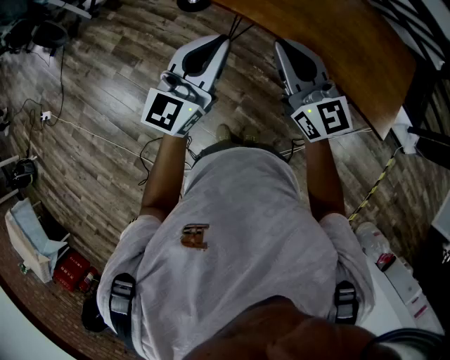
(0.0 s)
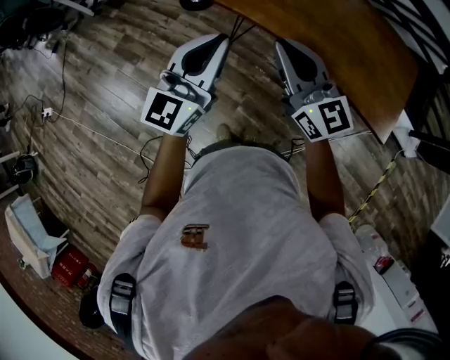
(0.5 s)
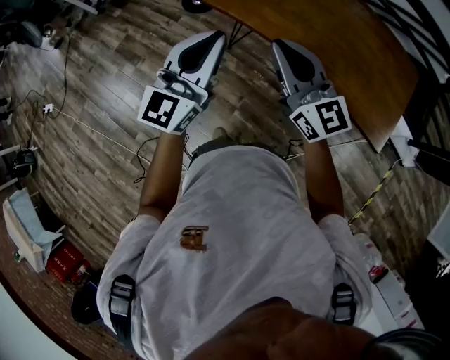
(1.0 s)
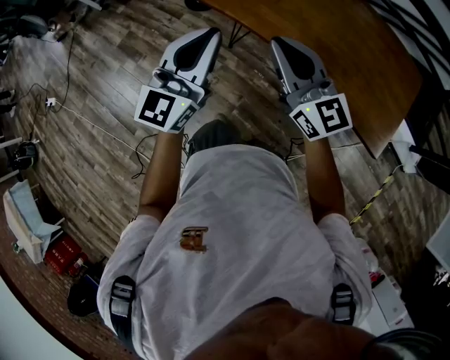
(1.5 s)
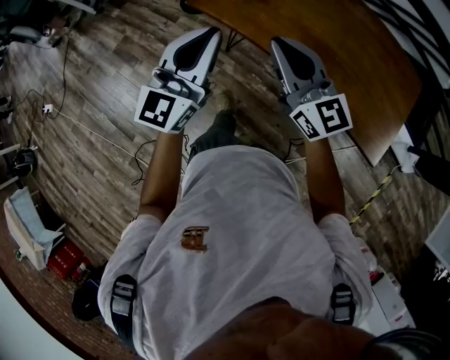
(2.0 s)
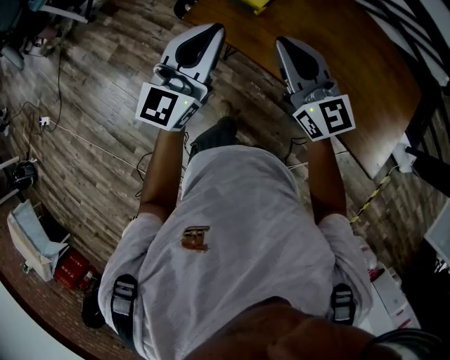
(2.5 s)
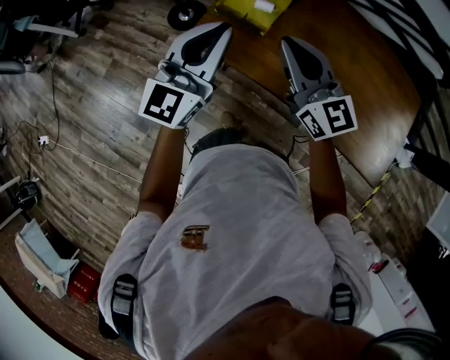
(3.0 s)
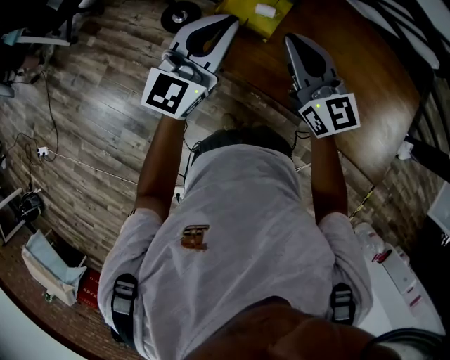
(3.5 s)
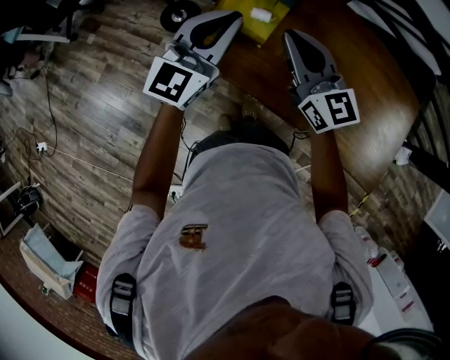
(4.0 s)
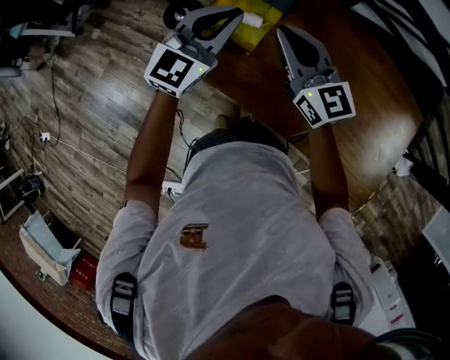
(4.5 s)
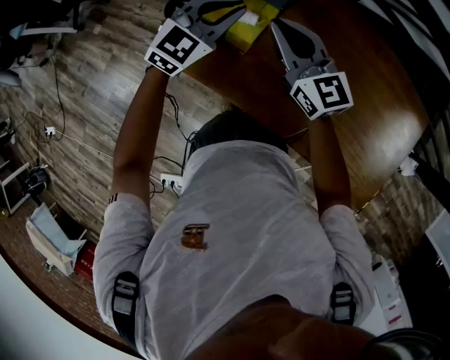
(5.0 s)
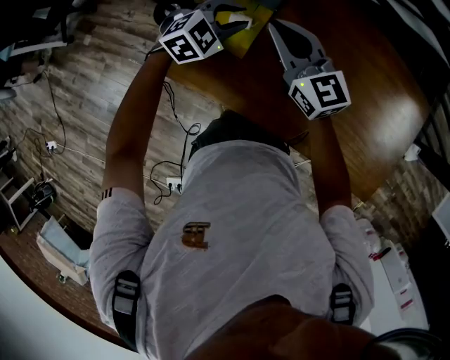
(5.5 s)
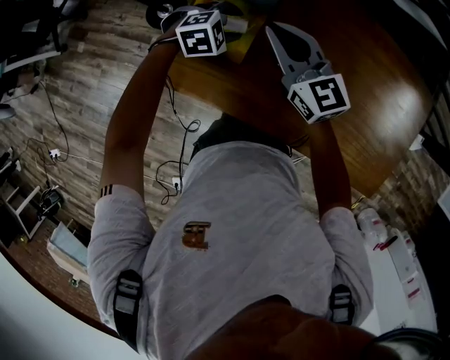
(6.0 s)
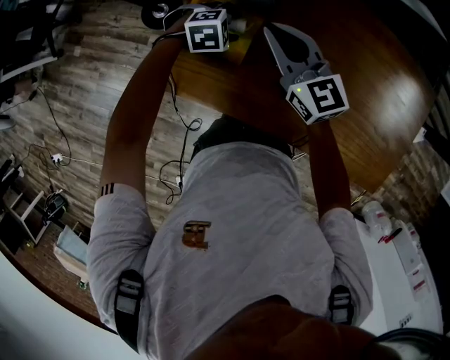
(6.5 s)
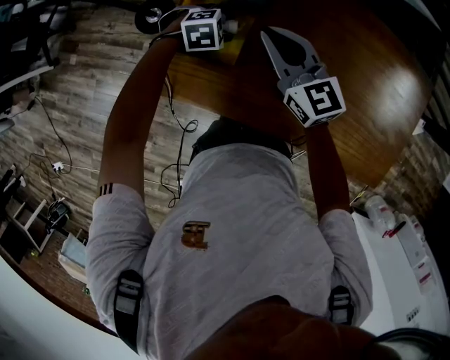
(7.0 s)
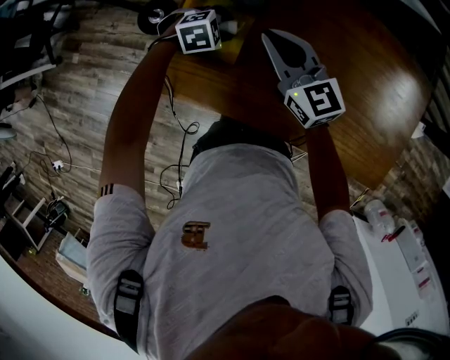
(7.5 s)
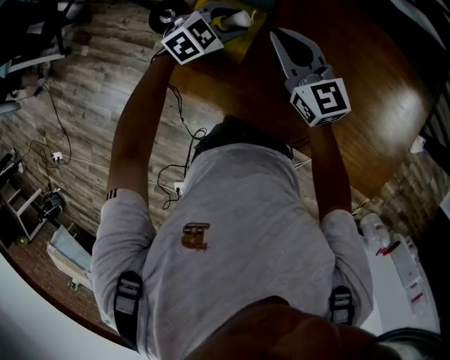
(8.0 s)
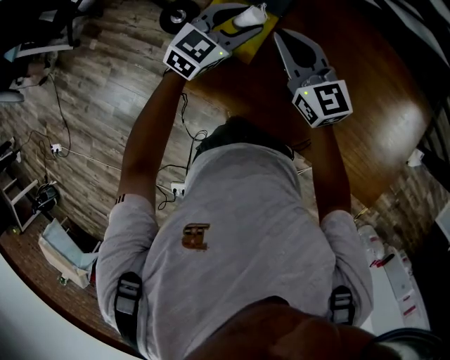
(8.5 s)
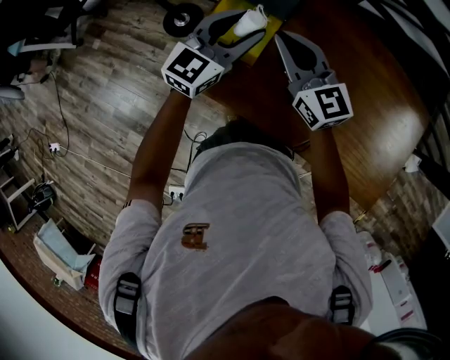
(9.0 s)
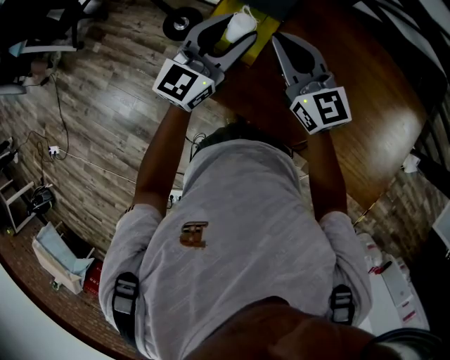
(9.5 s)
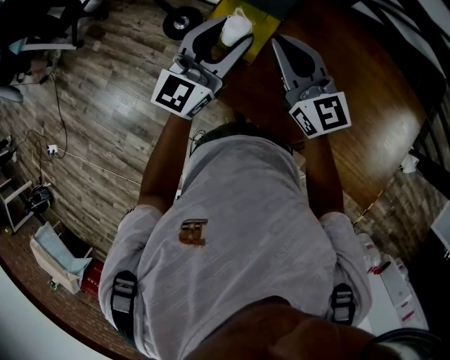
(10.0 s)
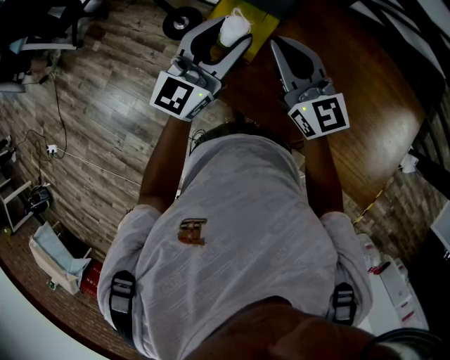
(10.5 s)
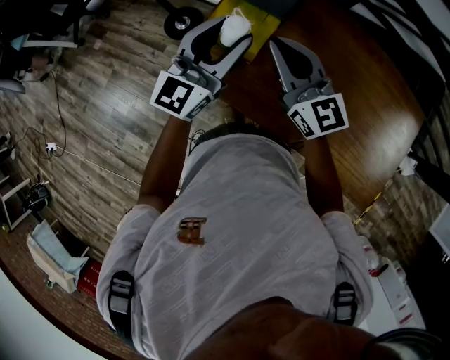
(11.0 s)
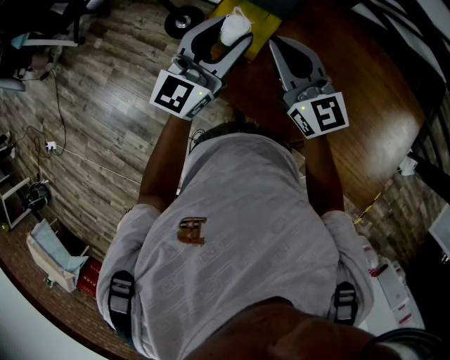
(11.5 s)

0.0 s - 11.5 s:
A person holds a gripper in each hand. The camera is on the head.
0.0 s - 2.0 s: Both grippers travel together forward and to the right, approximately 15 cm.
2.0 s - 4.0 s: Both grippers travel together forward, approximately 35 cm.
4.0 s - 6.0 s: The right gripper moves forward and downward, roughly 20 cm; the left gripper goes about 35 cm downward and forward, angles its fingers downward, by approximately 60 degrees, and opens.
6.0 s - 7.5 s: The grippers stay close to where they were, moving slightly.
7.5 s - 9.5 s: The left gripper goes some 30 cm upward, and points its fingers about 70 degrees further upward, while the right gripper moves upward and backward, roughly 10 cm.
9.5 s - 11.5 s: The left gripper changes place by roughly 5 cm.

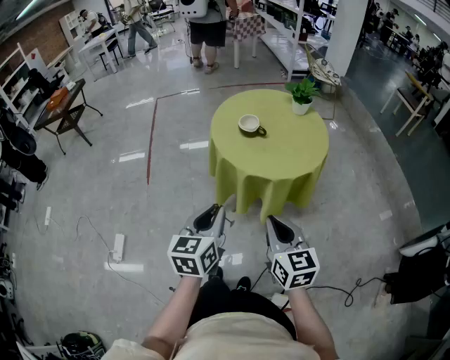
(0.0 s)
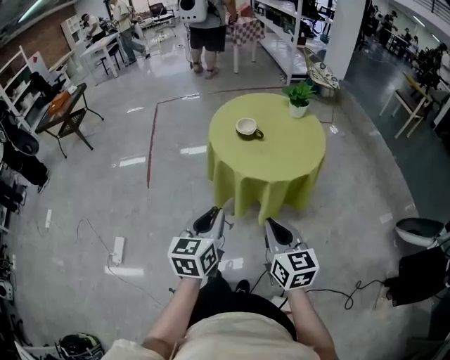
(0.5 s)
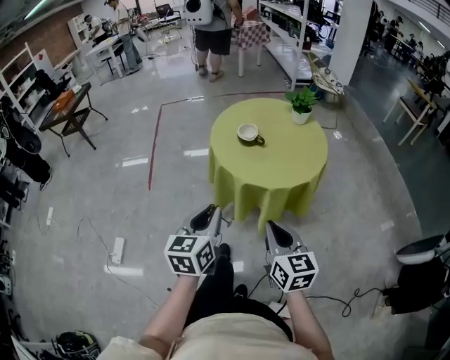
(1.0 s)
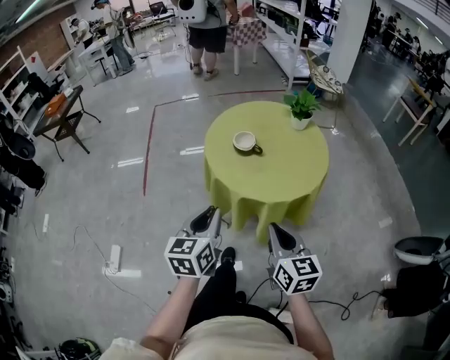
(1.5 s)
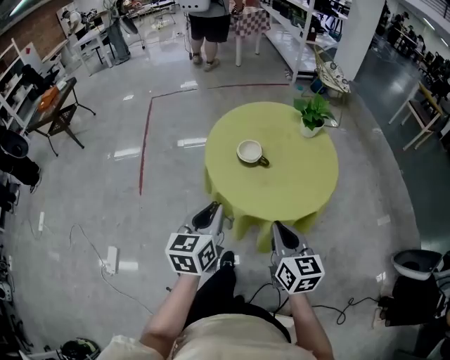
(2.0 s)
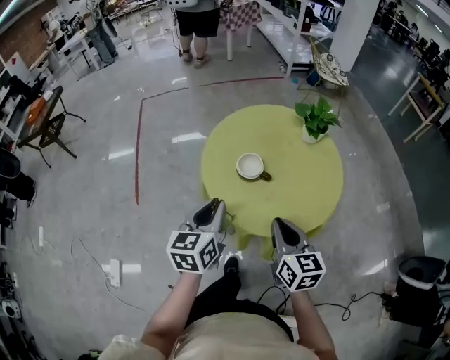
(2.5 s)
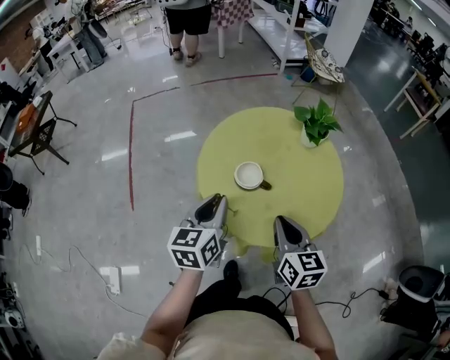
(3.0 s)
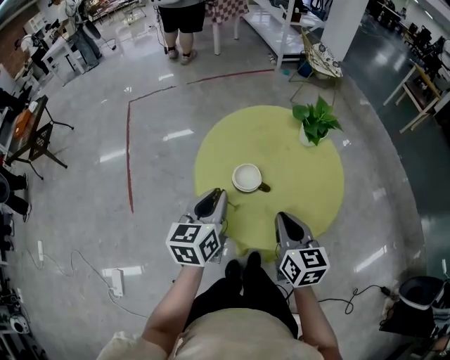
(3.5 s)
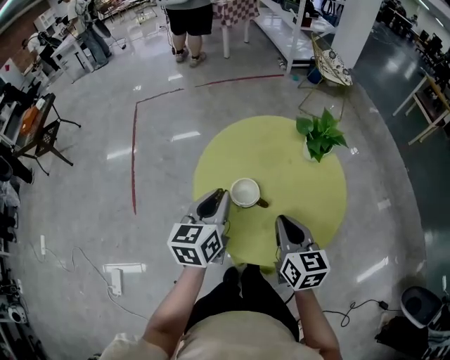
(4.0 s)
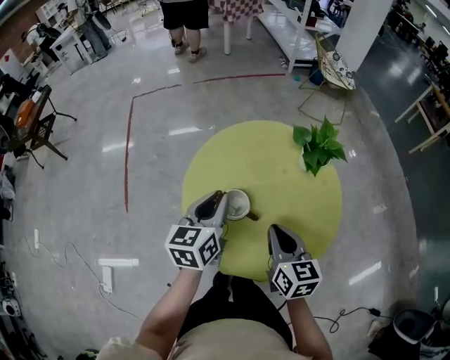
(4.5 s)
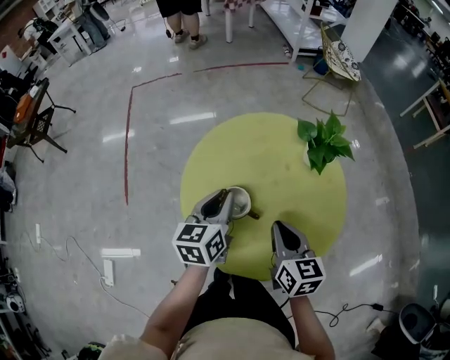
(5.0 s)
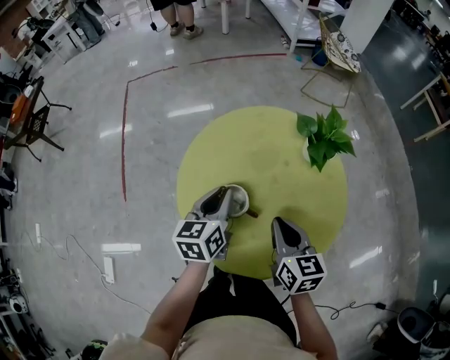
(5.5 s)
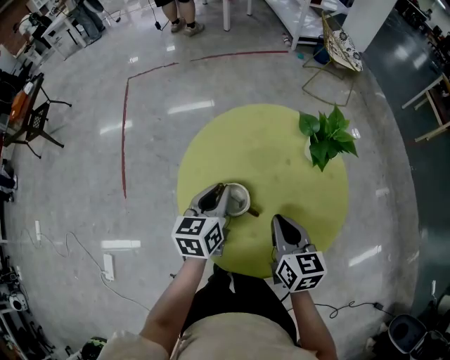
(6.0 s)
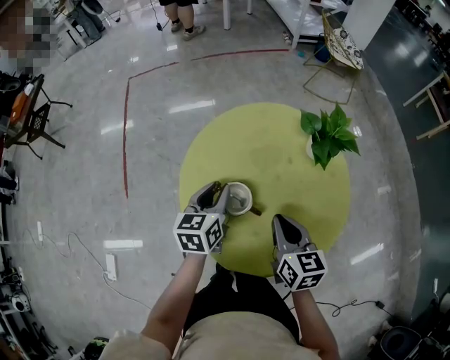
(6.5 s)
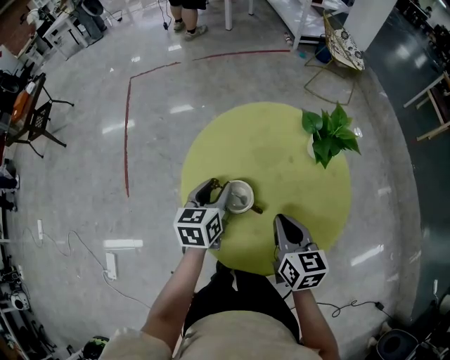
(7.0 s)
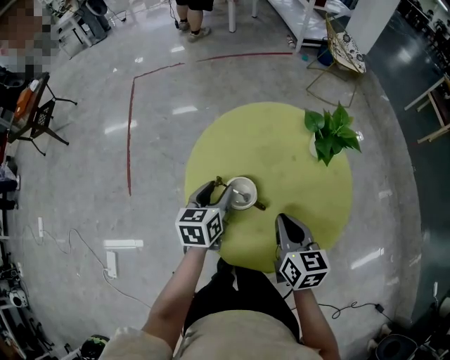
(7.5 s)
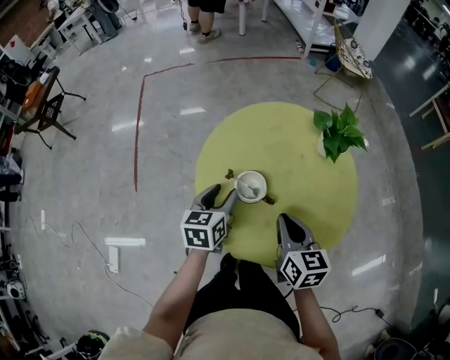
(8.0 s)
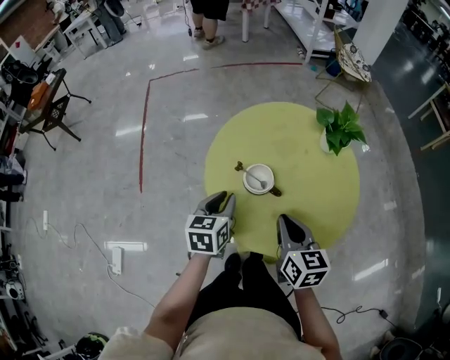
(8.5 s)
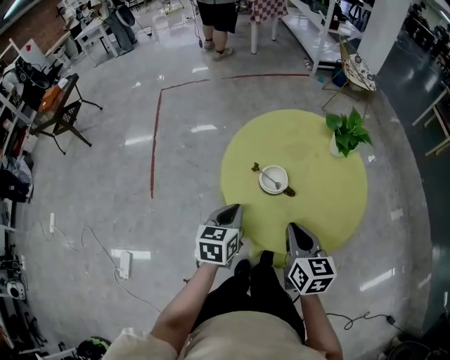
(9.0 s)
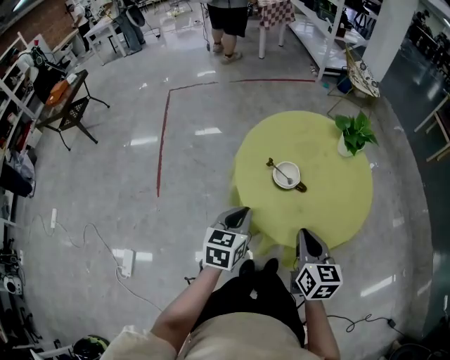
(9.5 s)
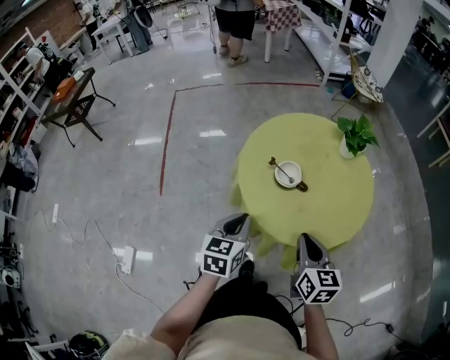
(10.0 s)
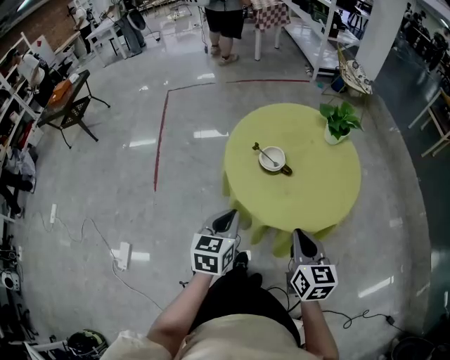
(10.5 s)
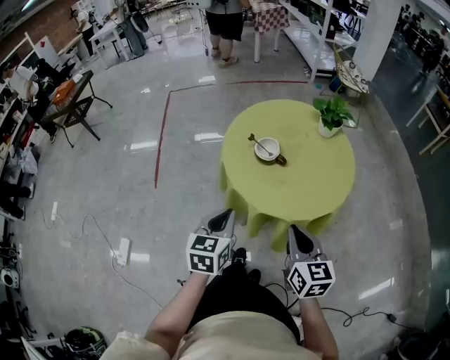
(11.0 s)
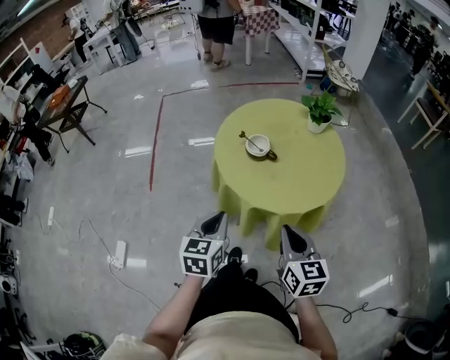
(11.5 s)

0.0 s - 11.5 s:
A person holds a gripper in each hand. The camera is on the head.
0.0 s - 2.0 s: The two grippers go approximately 15 cm forward.
2.0 s - 4.0 s: Both grippers move forward, about 20 cm.
4.0 s - 6.0 s: The right gripper moves forward, approximately 5 cm; the left gripper goes approximately 10 cm downward and forward.
6.0 s - 7.5 s: The left gripper opens up.
7.5 s - 9.5 s: The left gripper heads backward, covering some 15 cm, and closes. The right gripper travels backward and to the left by roughly 15 cm.
9.5 s - 11.5 s: The two grippers go some 15 cm backward.

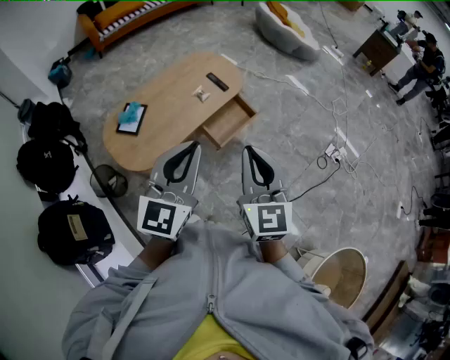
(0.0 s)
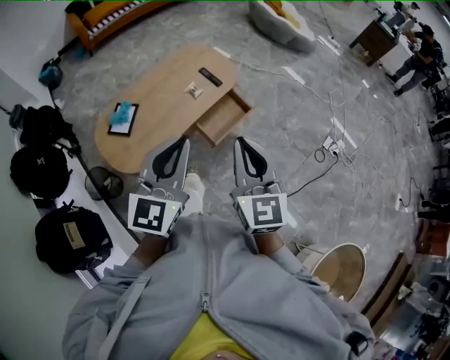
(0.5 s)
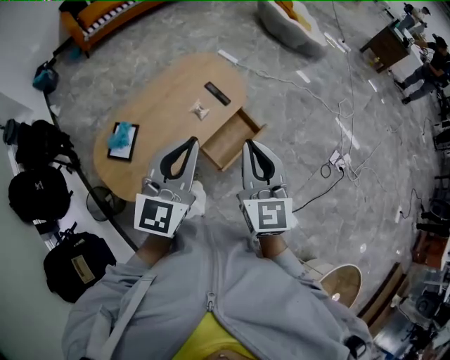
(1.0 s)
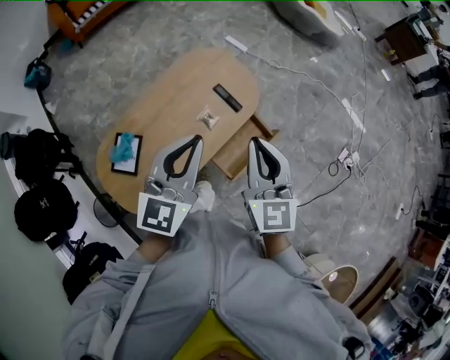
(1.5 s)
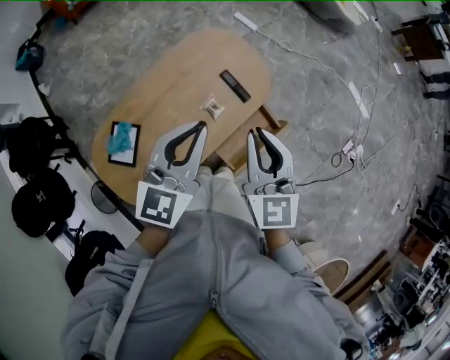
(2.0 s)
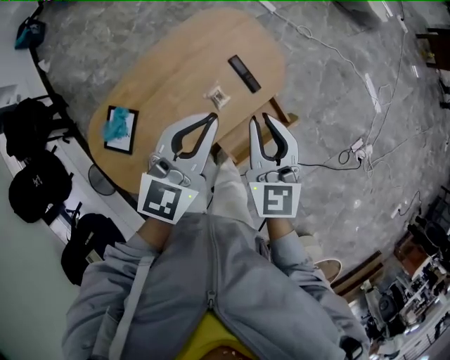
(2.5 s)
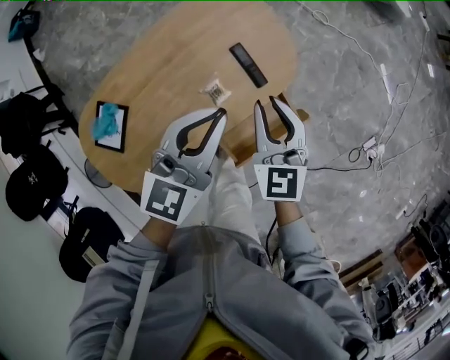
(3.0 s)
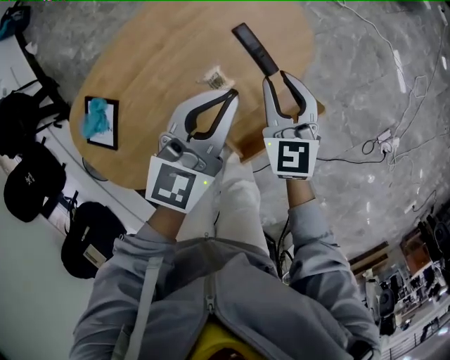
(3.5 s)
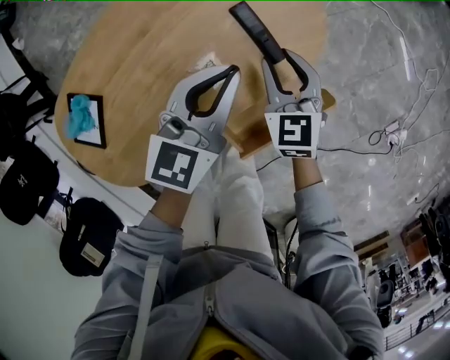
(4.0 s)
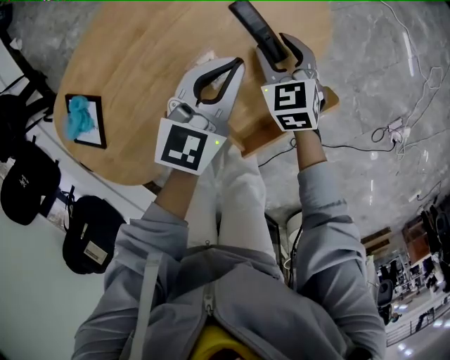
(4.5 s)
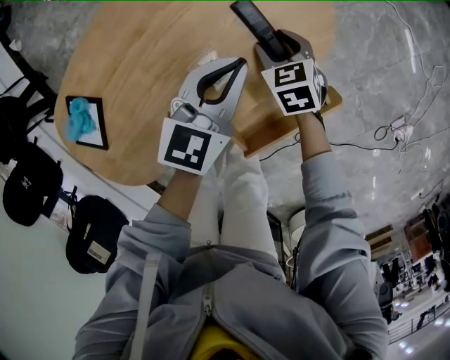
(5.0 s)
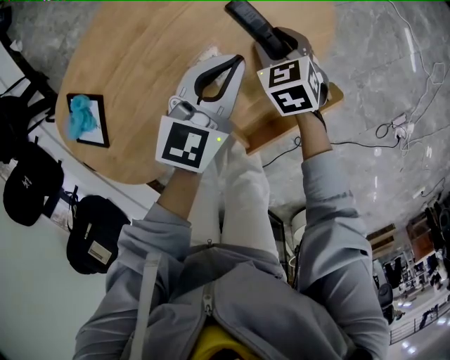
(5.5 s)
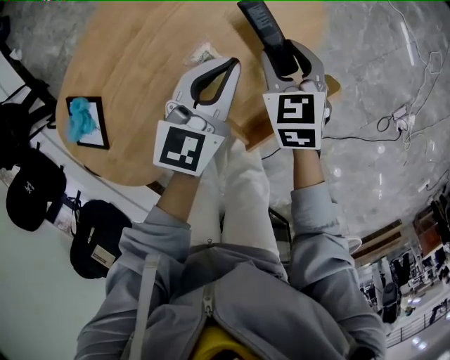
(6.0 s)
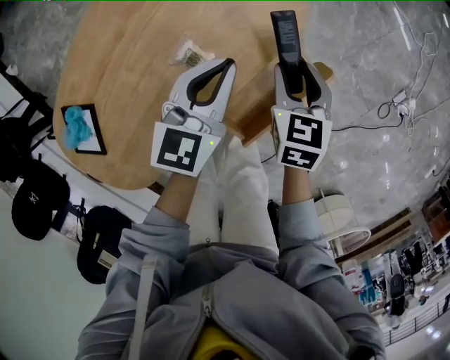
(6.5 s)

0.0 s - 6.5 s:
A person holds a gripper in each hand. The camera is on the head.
0.0 s - 2.0 s: The pair of grippers is taken forward, approximately 50 cm.
2.0 s - 4.5 s: Both grippers move downward, some 40 cm. The right gripper points its fingers approximately 30 degrees further downward, and opens.
4.5 s - 6.5 s: The left gripper ends up about 5 cm from where it was. The right gripper travels to the right, backward and upward by approximately 15 cm, and turns by roughly 30 degrees.
